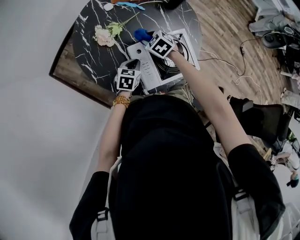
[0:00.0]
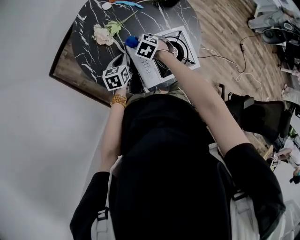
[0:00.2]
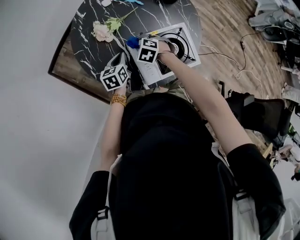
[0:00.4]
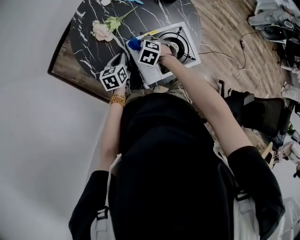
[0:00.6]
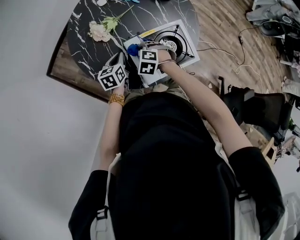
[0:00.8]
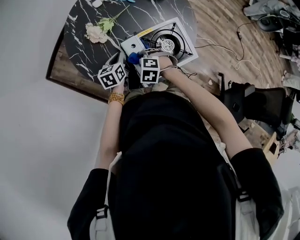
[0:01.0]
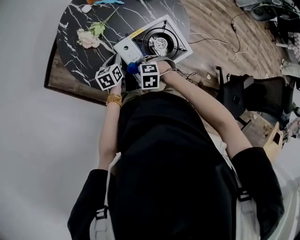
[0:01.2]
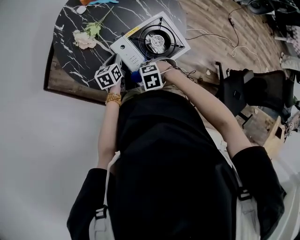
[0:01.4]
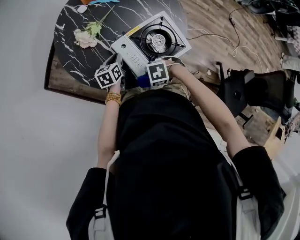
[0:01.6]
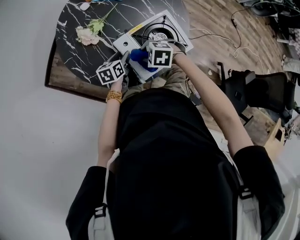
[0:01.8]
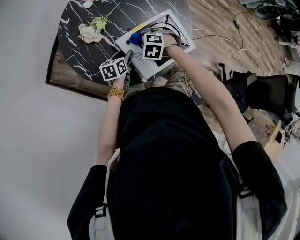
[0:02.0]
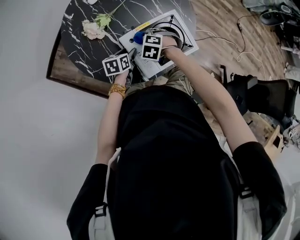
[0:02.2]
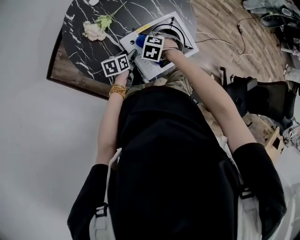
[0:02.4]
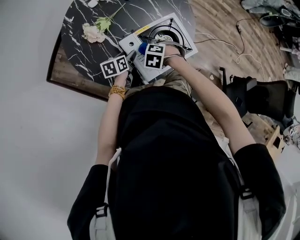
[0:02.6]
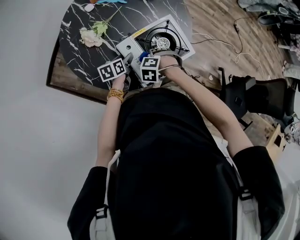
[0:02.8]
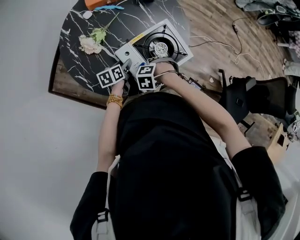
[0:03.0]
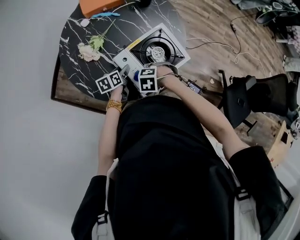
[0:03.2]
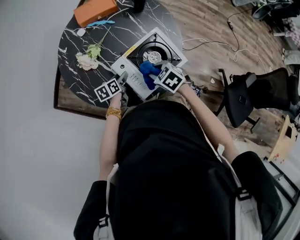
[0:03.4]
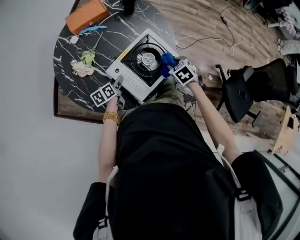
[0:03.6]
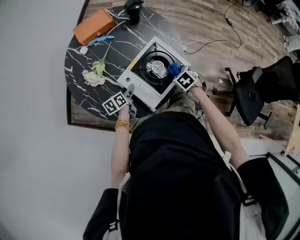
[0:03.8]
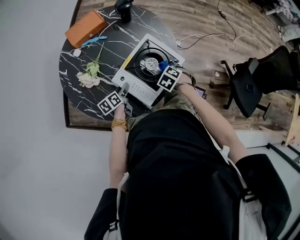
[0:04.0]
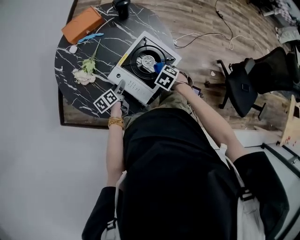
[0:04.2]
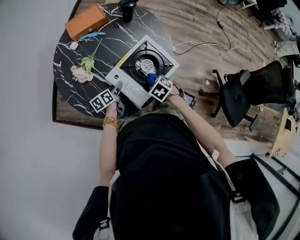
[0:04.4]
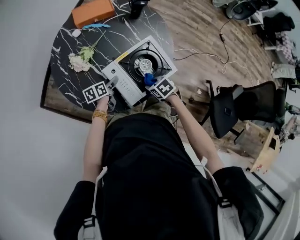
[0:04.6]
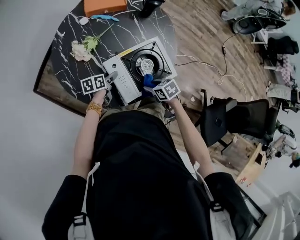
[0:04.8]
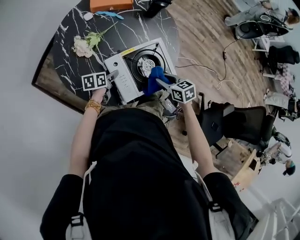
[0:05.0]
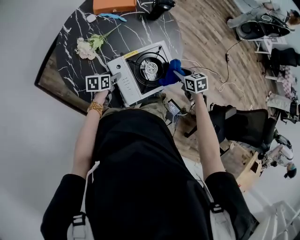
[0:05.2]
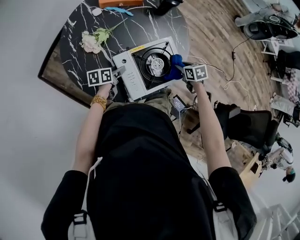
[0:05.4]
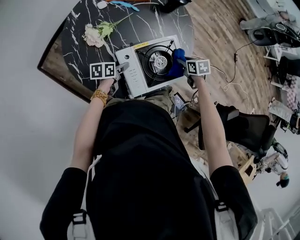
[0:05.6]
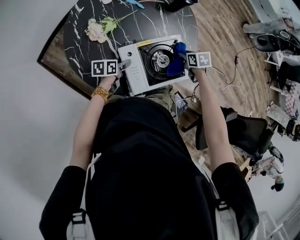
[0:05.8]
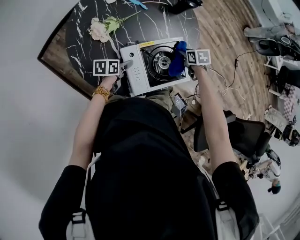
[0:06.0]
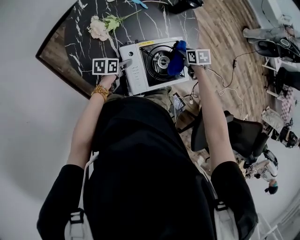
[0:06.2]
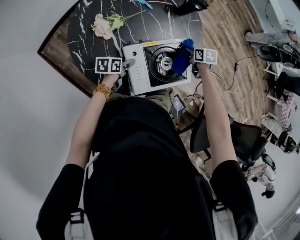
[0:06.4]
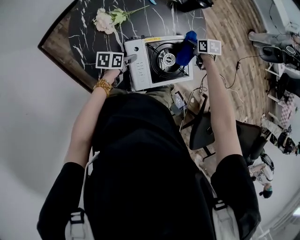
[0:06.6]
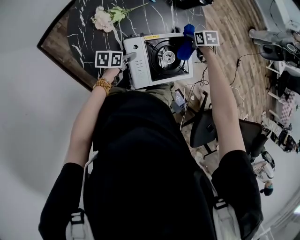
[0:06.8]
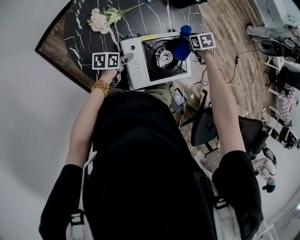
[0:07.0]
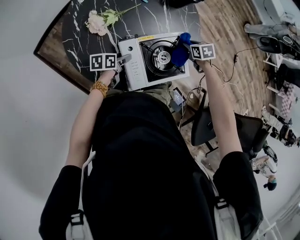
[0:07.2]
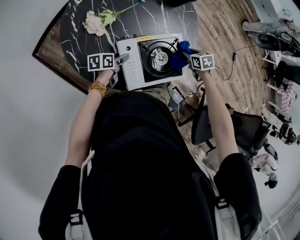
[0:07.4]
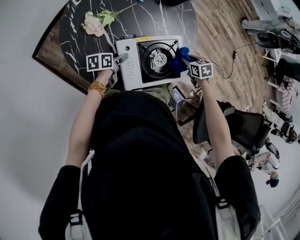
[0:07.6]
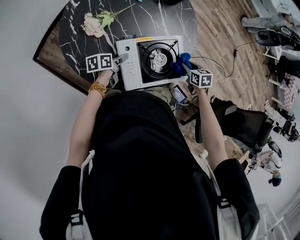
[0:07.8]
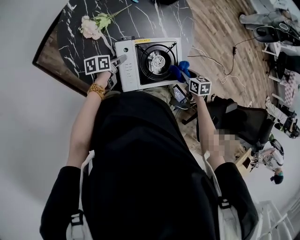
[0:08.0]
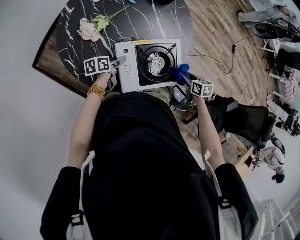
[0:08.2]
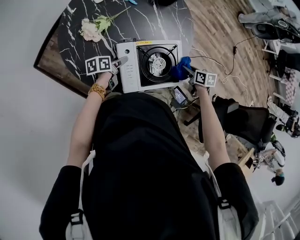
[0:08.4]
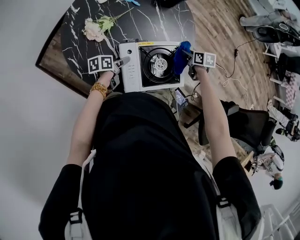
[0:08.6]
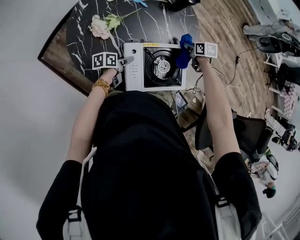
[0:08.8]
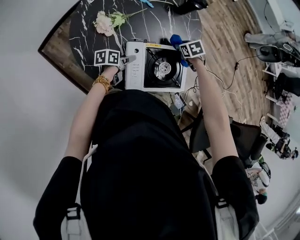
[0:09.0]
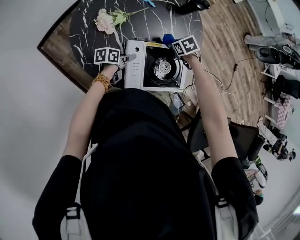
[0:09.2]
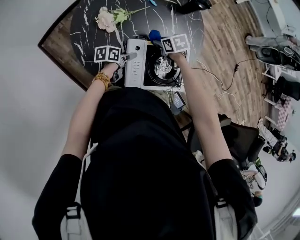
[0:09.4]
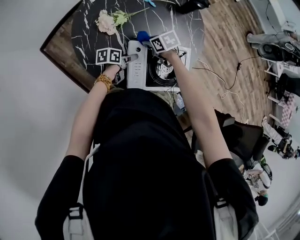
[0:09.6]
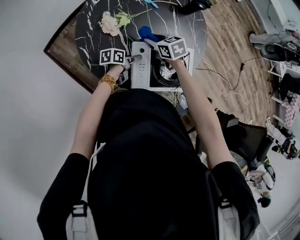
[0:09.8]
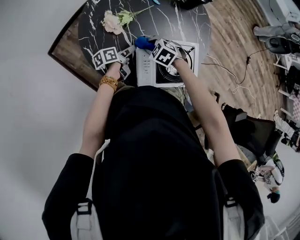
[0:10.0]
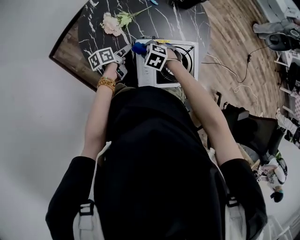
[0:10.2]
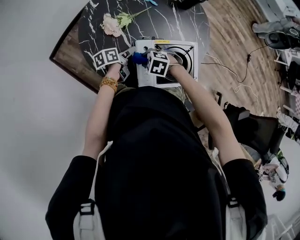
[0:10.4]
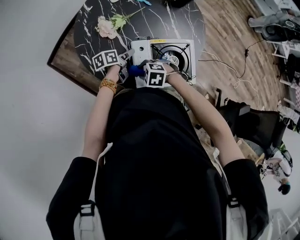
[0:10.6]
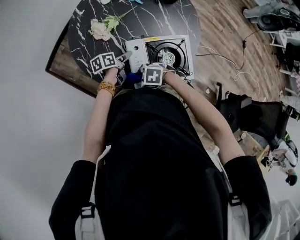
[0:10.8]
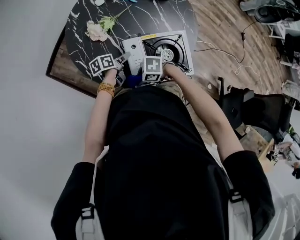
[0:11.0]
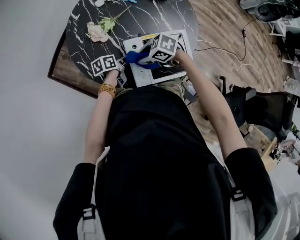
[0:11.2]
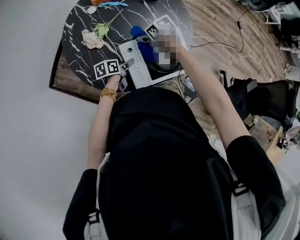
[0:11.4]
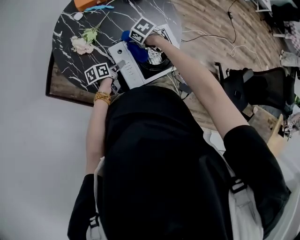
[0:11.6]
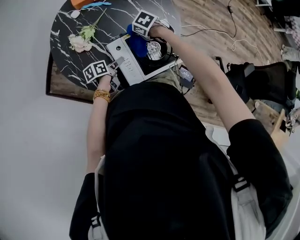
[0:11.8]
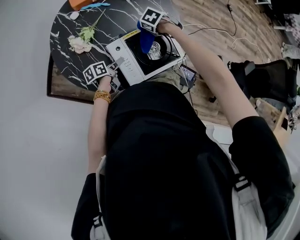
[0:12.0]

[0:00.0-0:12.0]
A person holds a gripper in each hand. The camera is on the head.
0:00.0 to 0:01.6: The right gripper changes place by roughly 30 cm, and swivels roughly 50 degrees.
0:01.6 to 0:03.0: The right gripper tilts its fingers about 30 degrees downward, while the left gripper opens up.
0:03.0 to 0:04.4: The right gripper moves some 10 cm upward and comes back, and rotates around the line of its fingers by about 50 degrees, clockwise from behind.
0:04.4 to 0:06.0: The right gripper heads forward and to the right, covering about 20 cm.
0:06.0 to 0:07.6: The right gripper moves backward, approximately 5 cm.
0:07.6 to 0:09.0: The right gripper shifts roughly 15 cm to the left and forward.
0:09.0 to 0:10.4: The right gripper ends up about 30 cm from where it was, and twists roughly 50 degrees counterclockwise, seen from behind; the left gripper ends up about 5 cm from where it was.
0:10.4 to 0:12.0: The left gripper moves roughly 10 cm. The right gripper goes upward and returns, roughly 5 cm each way, and rotates around the line of its fingers by roughly 40 degrees, clockwise from behind.

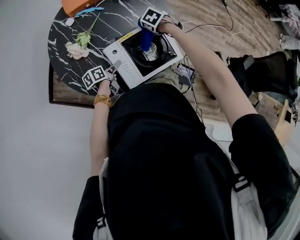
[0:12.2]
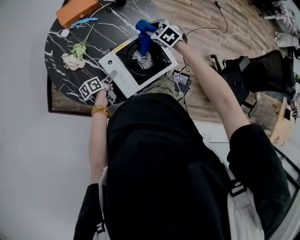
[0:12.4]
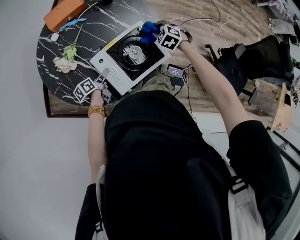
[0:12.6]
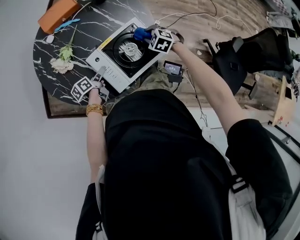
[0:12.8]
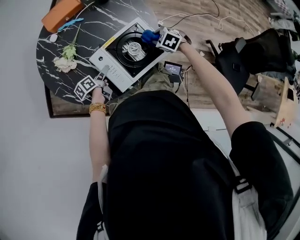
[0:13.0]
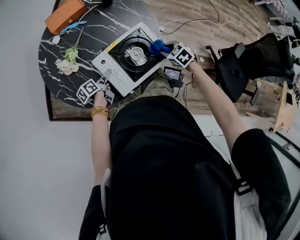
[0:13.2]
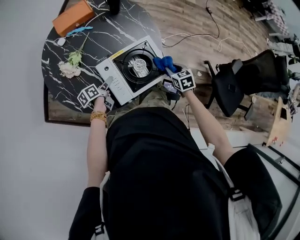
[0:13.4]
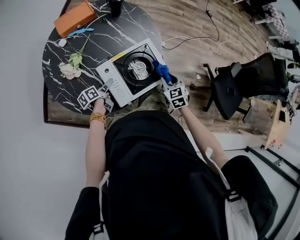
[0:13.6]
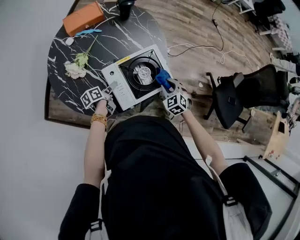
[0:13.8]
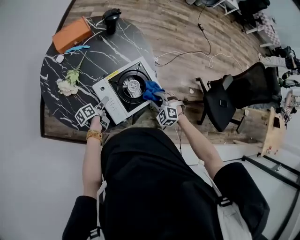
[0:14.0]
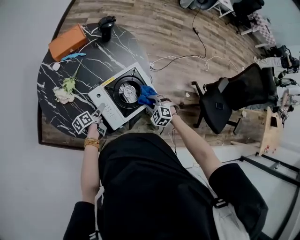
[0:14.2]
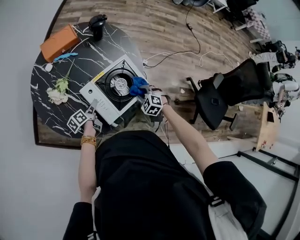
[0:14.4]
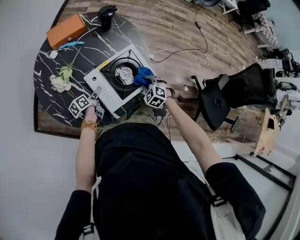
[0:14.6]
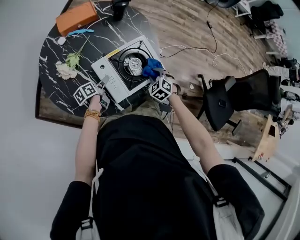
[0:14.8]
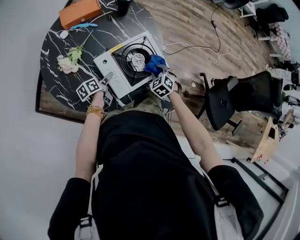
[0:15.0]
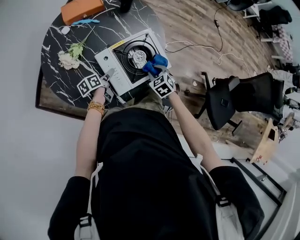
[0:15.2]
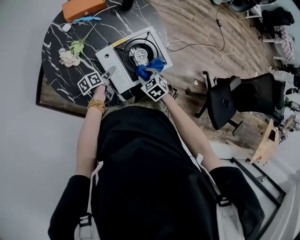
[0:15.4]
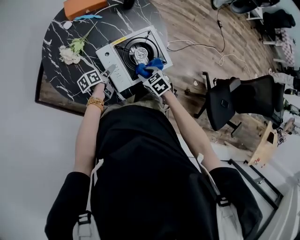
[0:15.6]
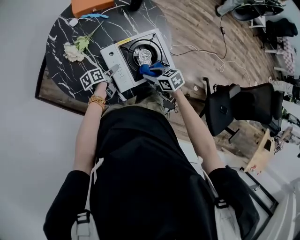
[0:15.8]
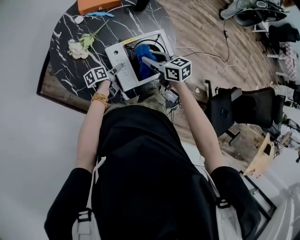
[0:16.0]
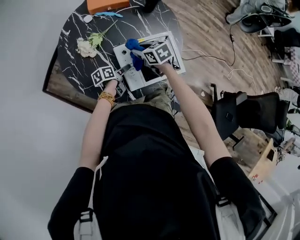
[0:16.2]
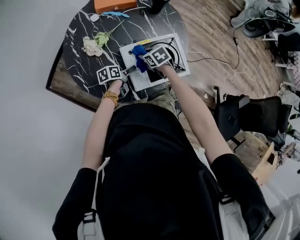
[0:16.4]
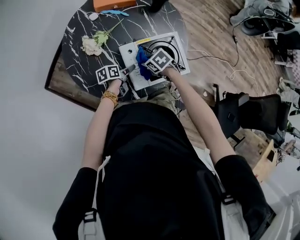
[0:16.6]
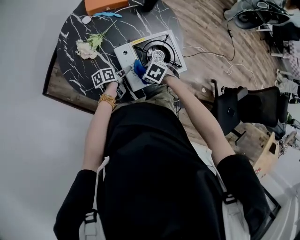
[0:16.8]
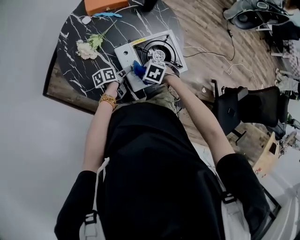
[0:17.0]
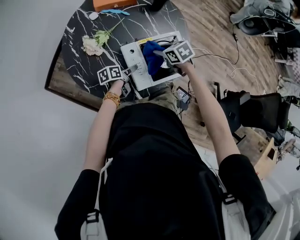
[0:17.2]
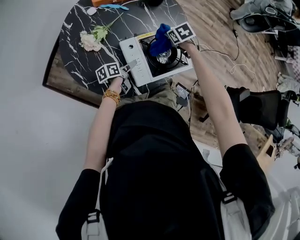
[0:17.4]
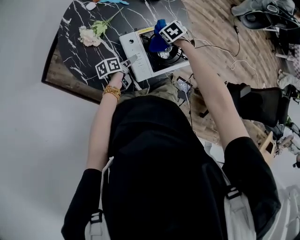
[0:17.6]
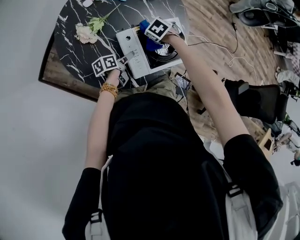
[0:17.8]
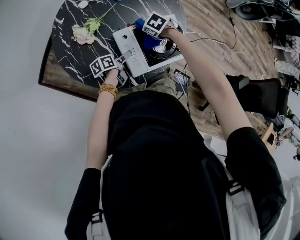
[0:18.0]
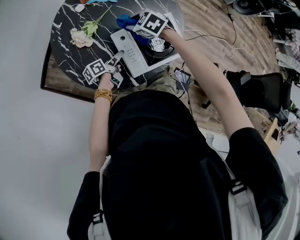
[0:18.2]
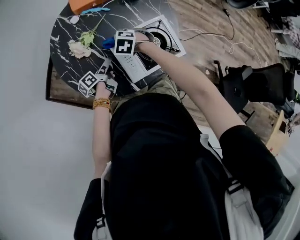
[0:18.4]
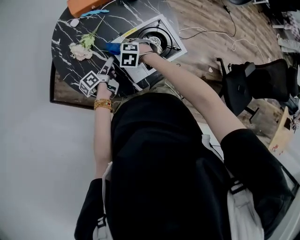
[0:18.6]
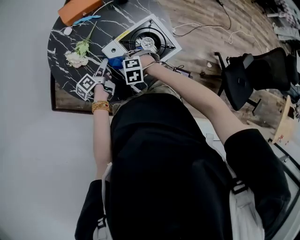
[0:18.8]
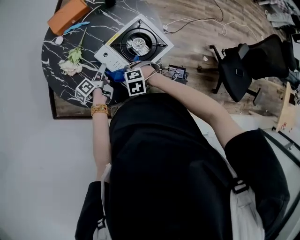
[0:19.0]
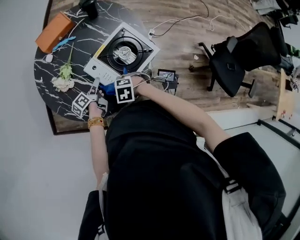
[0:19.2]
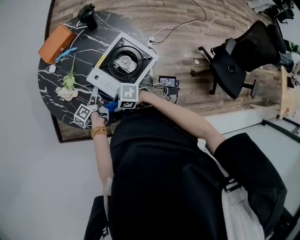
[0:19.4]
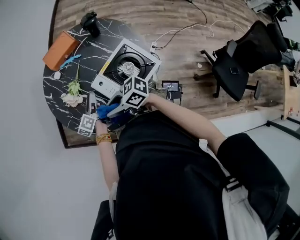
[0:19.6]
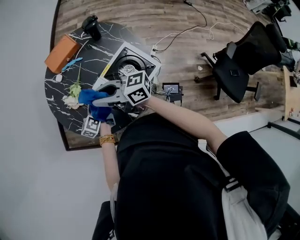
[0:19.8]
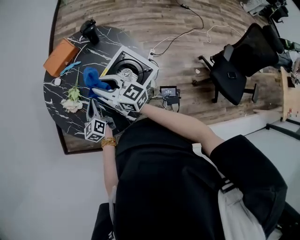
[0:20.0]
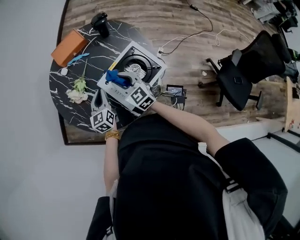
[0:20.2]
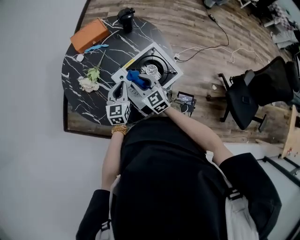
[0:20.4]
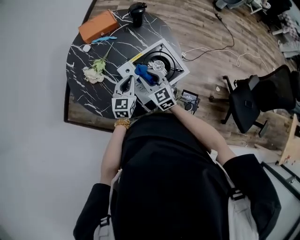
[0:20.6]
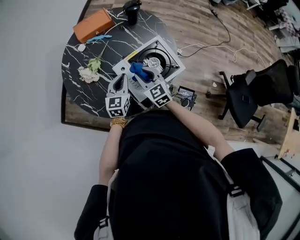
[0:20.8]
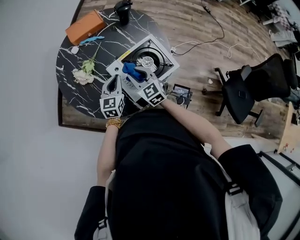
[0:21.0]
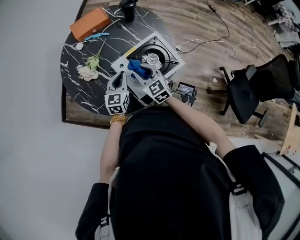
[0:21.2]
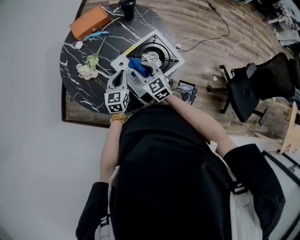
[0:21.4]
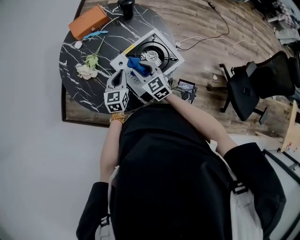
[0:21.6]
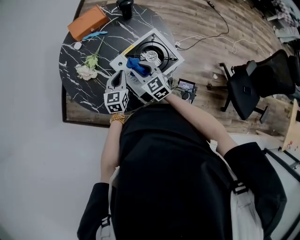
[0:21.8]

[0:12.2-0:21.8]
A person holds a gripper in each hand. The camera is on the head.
0:12.2 to 0:13.8: The right gripper changes place by roughly 25 cm, and rotates about 30 degrees.
0:13.8 to 0:15.4: The right gripper goes roughly 10 cm to the left, goes forward and returns, about 5 cm each way, and turns by some 20 degrees.
0:15.4 to 0:17.0: The right gripper reaches some 10 cm upward, then returns, and turns by roughly 30 degrees.
0:17.0 to 0:18.6: The right gripper goes up and down, approximately 10 cm each way, reversing 3 times; the left gripper changes place by some 10 cm.
0:18.6 to 0:20.2: The grippers both shift upward by roughly 10 cm. The right gripper tips its fingers upward by roughly 50 degrees; the left gripper twists approximately 60 degrees clockwise, seen from behind, and closes up.
0:20.2 to 0:21.8: The grippers make only small movements.

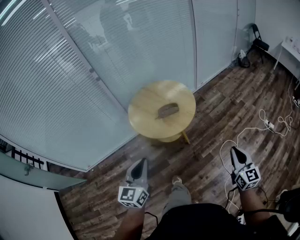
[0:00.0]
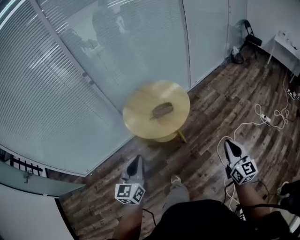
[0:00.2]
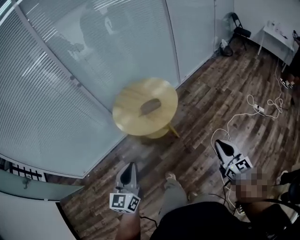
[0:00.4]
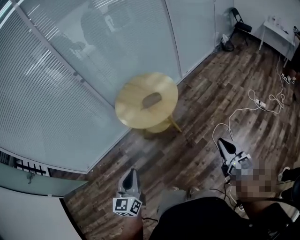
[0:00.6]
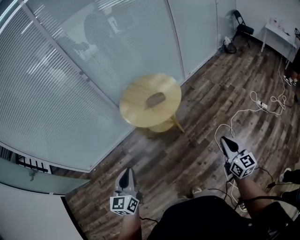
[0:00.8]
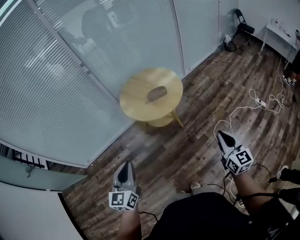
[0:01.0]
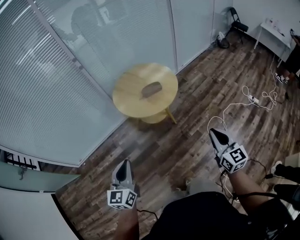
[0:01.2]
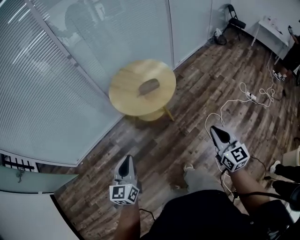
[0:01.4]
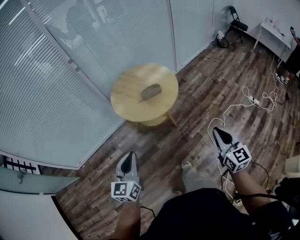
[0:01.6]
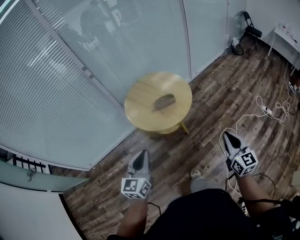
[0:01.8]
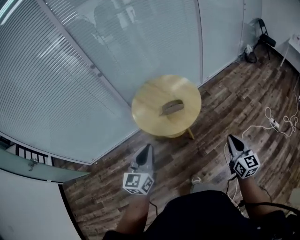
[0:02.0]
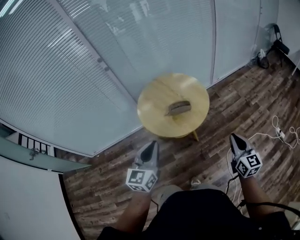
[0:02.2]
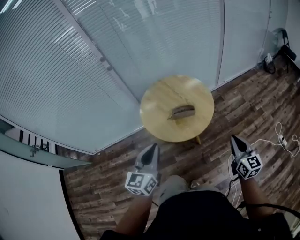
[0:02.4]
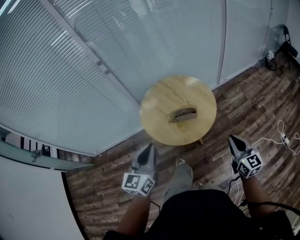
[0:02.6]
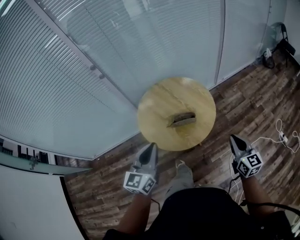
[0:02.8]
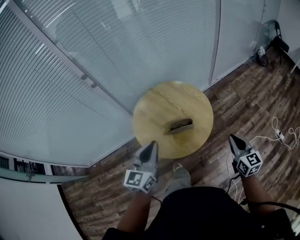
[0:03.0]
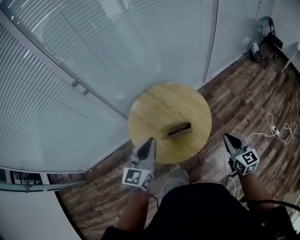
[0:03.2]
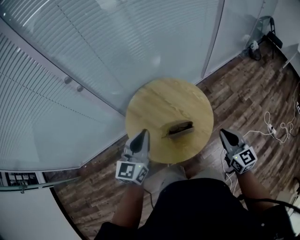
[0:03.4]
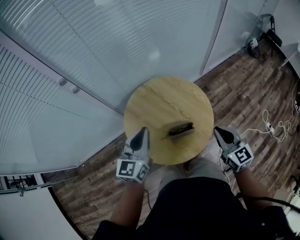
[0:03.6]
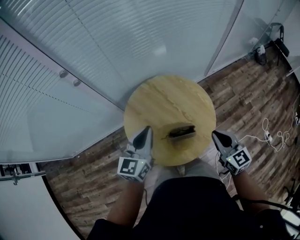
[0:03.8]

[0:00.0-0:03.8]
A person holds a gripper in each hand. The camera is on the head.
0:00.0 to 0:01.2: The two grippers go roughly 15 cm backward and to the left.
0:01.2 to 0:02.6: The grippers both shift forward by approximately 30 cm.
0:02.6 to 0:03.8: The left gripper is displaced forward by some 30 cm. The right gripper shifts roughly 25 cm forward and to the left.
